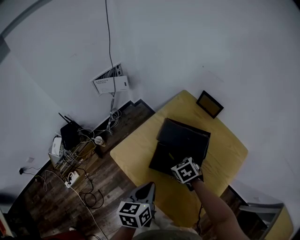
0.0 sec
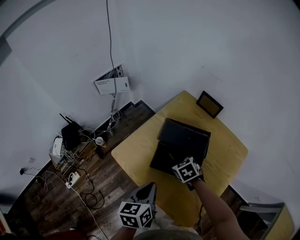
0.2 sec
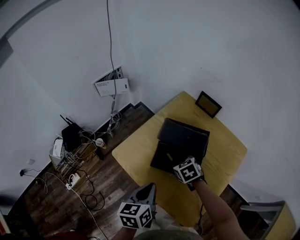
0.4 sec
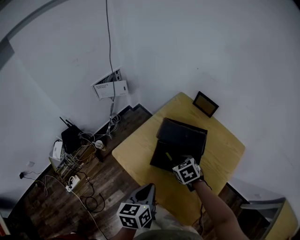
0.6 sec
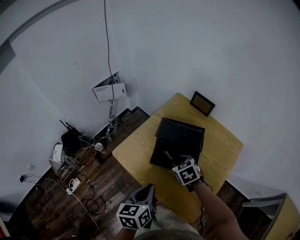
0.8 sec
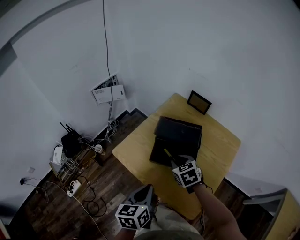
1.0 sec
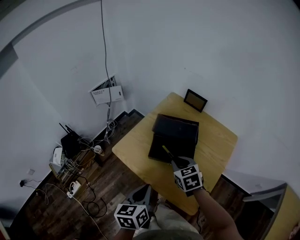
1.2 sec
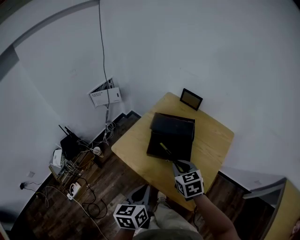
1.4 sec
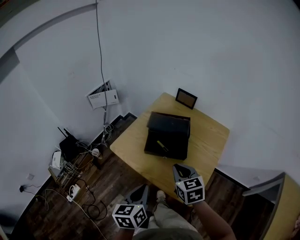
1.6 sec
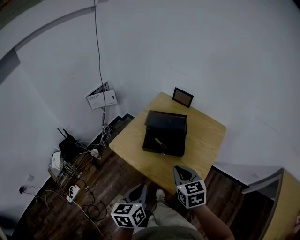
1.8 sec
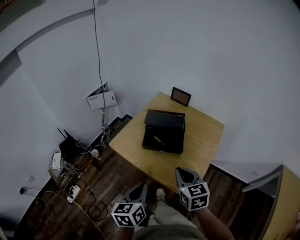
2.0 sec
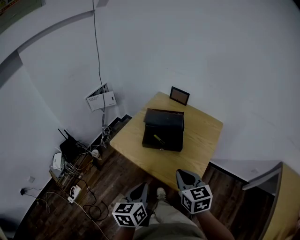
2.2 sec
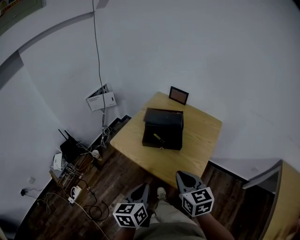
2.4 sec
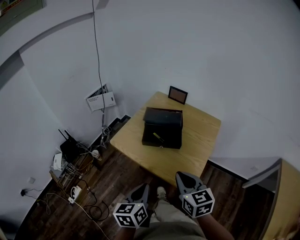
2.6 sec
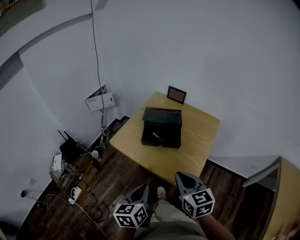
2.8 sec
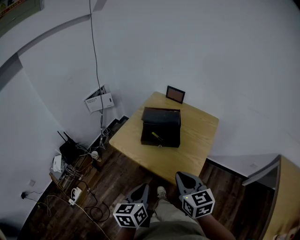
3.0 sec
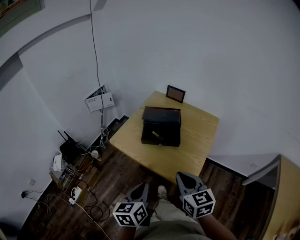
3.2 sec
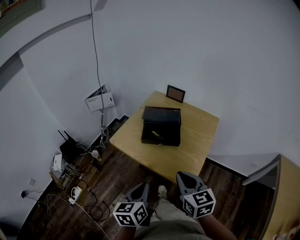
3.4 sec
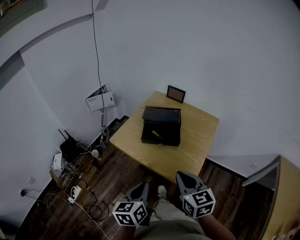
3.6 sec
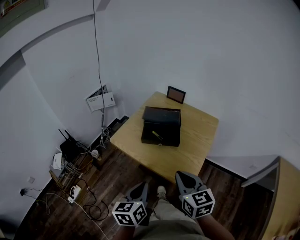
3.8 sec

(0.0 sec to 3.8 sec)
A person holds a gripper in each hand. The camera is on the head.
0.0 sec - 1.2 sec: The right gripper heads upward and backward, covering roughly 15 cm, and changes its angle by roughly 20 degrees. The left gripper travels backward by some 10 cm.
1.2 sec - 2.6 sec: The left gripper shifts roughly 10 cm backward. The right gripper moves backward and upward, roughly 25 cm, and rotates roughly 20 degrees.
2.6 sec - 3.8 sec: The grippers make only small movements.

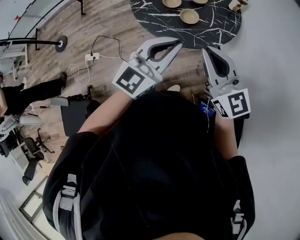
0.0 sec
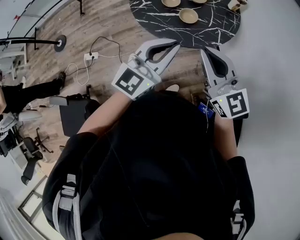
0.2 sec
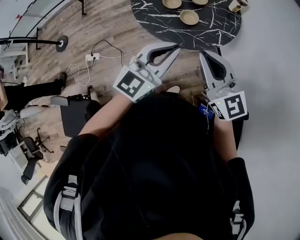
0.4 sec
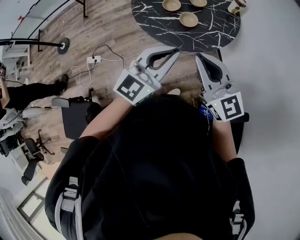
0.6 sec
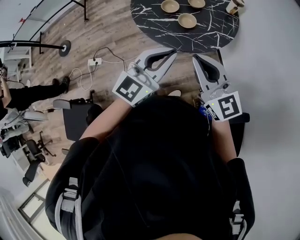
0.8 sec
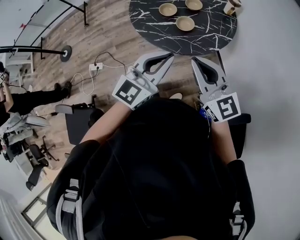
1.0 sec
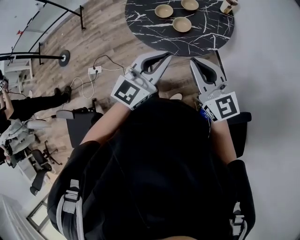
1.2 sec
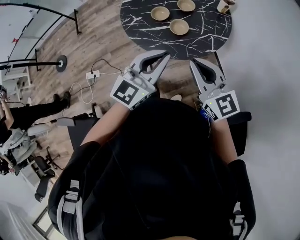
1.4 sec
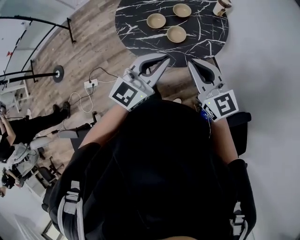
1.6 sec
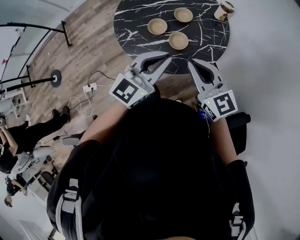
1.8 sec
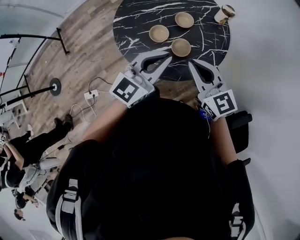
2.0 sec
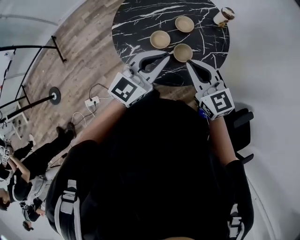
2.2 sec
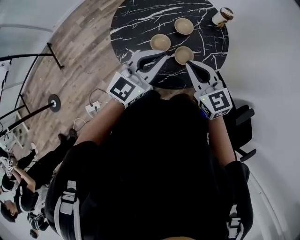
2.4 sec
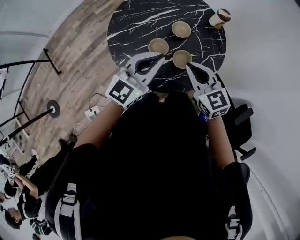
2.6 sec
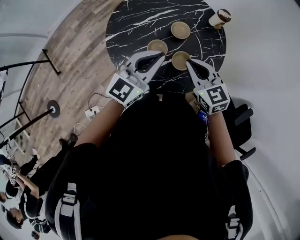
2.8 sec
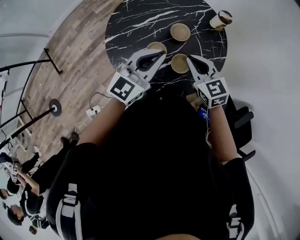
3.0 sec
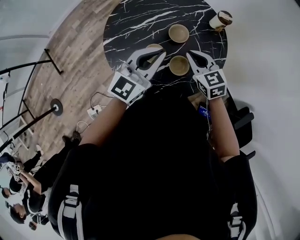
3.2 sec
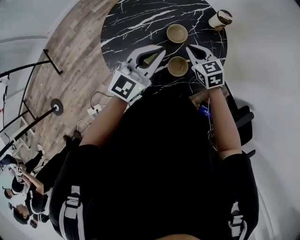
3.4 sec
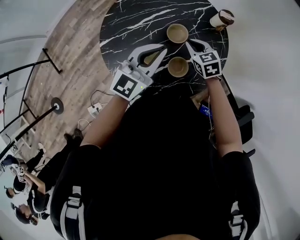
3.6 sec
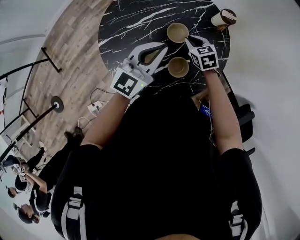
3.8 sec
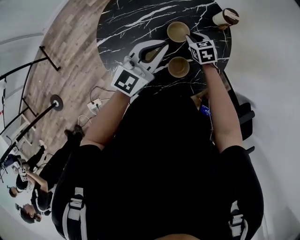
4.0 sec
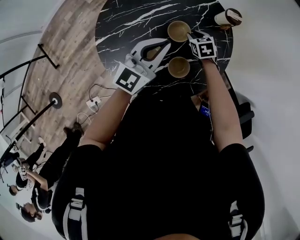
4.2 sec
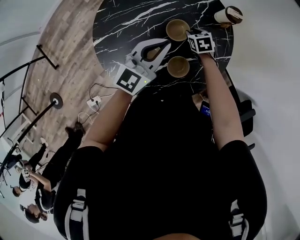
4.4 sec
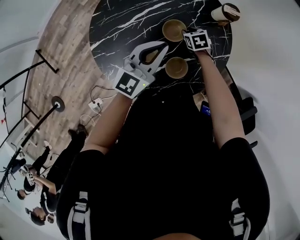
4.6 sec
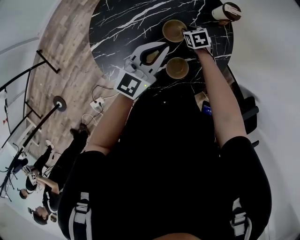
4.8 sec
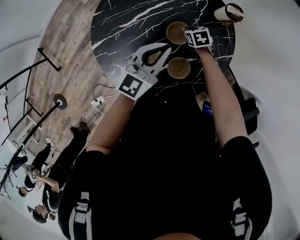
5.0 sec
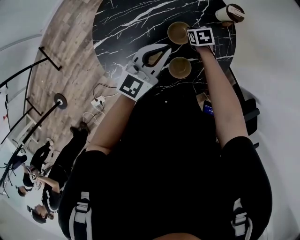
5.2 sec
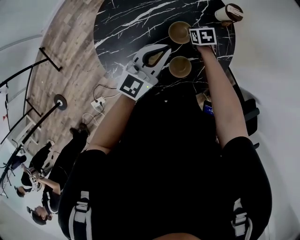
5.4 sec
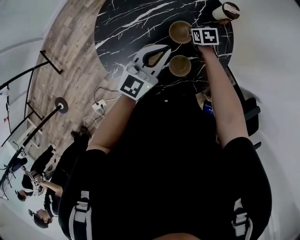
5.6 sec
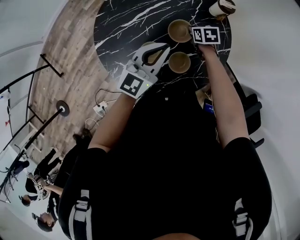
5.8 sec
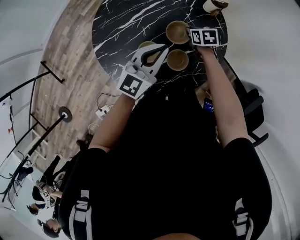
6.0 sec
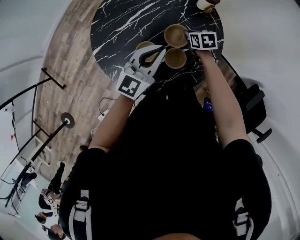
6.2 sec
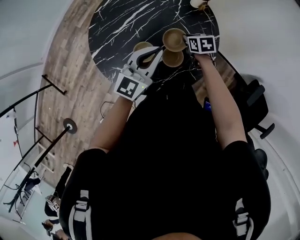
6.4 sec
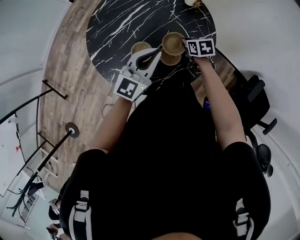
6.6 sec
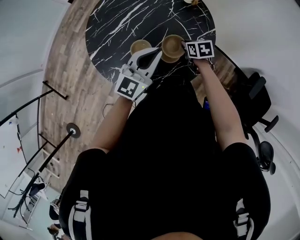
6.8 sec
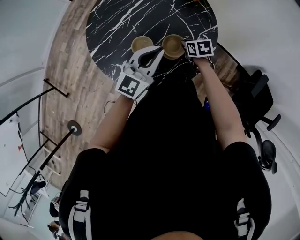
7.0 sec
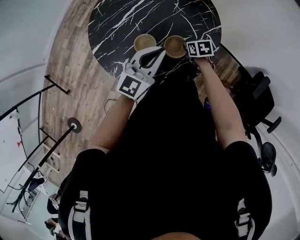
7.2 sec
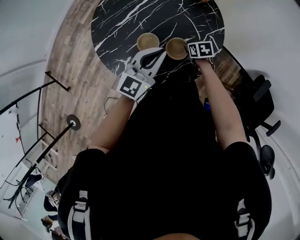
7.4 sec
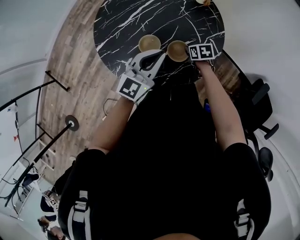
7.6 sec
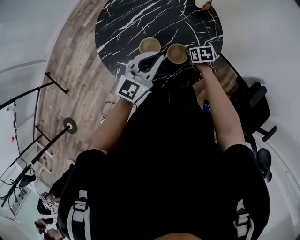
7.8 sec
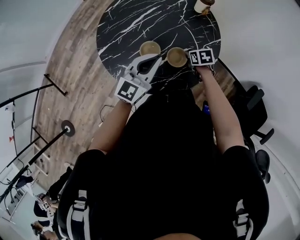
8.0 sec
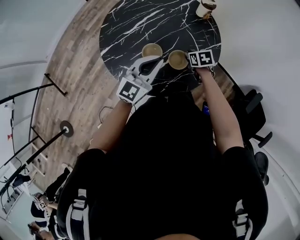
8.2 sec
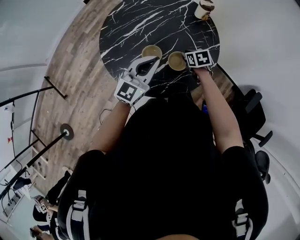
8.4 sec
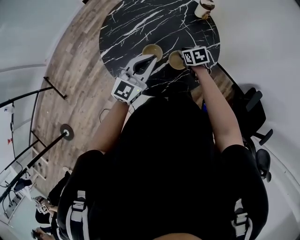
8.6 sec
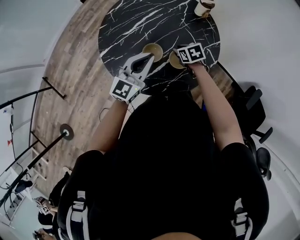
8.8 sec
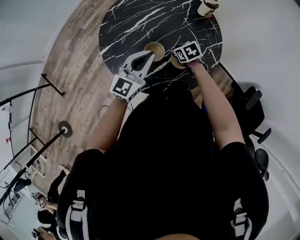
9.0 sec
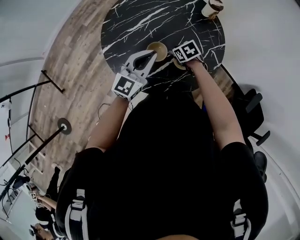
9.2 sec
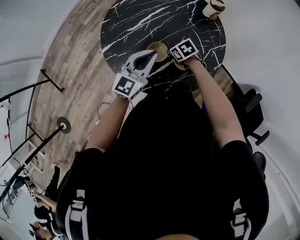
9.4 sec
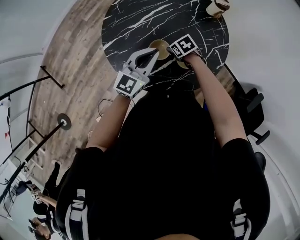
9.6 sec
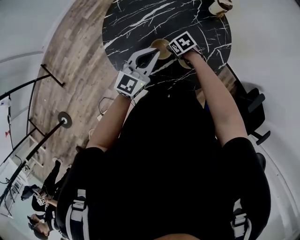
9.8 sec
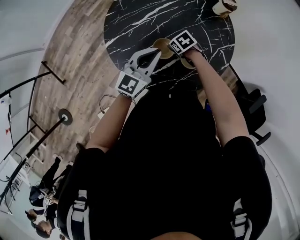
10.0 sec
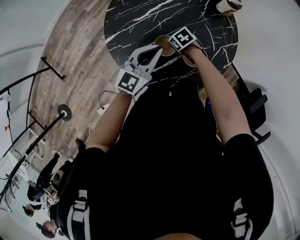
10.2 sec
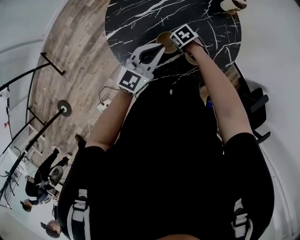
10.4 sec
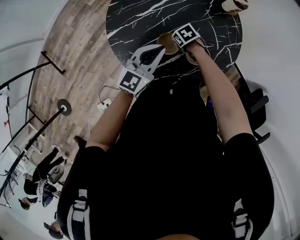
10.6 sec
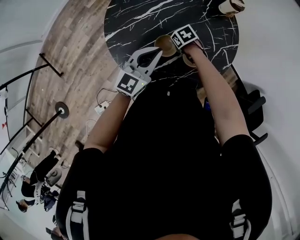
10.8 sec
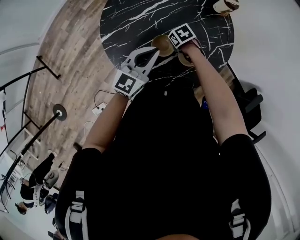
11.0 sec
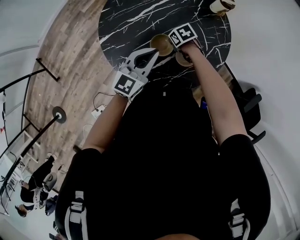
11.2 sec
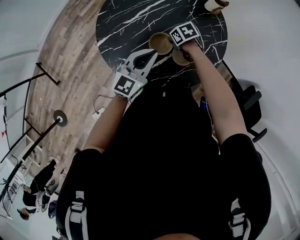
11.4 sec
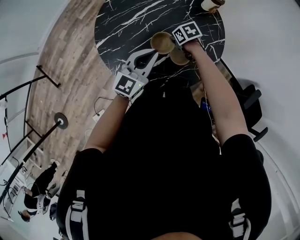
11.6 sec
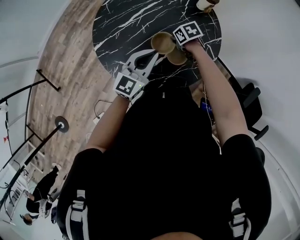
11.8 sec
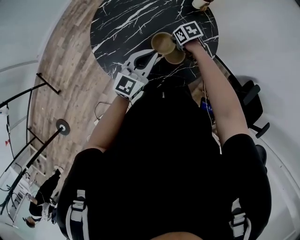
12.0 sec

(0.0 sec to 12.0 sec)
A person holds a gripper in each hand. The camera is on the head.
0.0 sec - 1.6 sec: Both grippers travel together forward, some 10 cm.
1.6 sec - 3.0 sec: The left gripper is displaced forward and to the left by some 30 cm. The right gripper is displaced forward, to the left and downward by some 30 cm, and swivels some 30 degrees.
3.0 sec - 4.4 sec: The left gripper heads forward and downward, covering roughly 15 cm. The right gripper goes about 35 cm downward and forward, points its fingers roughly 30 degrees further downward, and opens its fingers.
4.4 sec - 6.0 sec: The left gripper travels backward by some 5 cm. The right gripper moves approximately 5 cm, and closes.
6.0 sec - 7.6 sec: The left gripper travels backward by approximately 10 cm; the right gripper goes about 15 cm backward.
7.6 sec - 9.0 sec: The right gripper goes about 10 cm to the left and upward, and swivels some 20 degrees; the left gripper heads to the left, covering about 10 cm.
9.0 sec - 10.4 sec: The left gripper moves downward, about 5 cm. The right gripper moves downward, roughly 10 cm, and turns by roughly 20 degrees.
10.4 sec - 12.0 sec: The right gripper changes place by some 10 cm, rotates approximately 20 degrees, and closes up. The left gripper ends up roughly 10 cm from where it was.

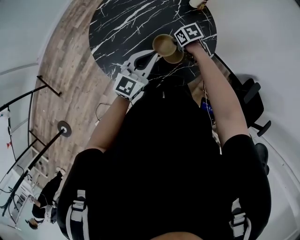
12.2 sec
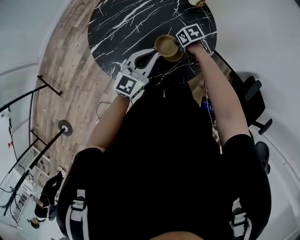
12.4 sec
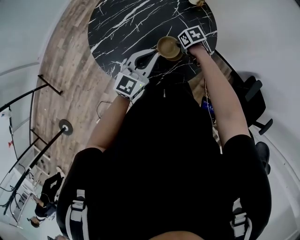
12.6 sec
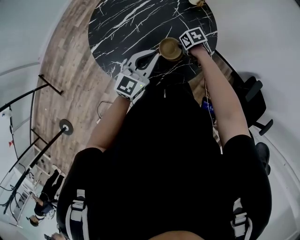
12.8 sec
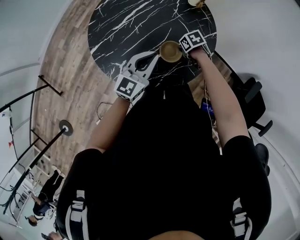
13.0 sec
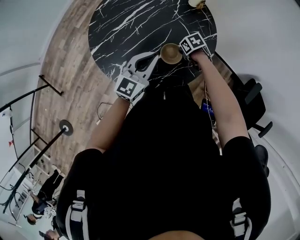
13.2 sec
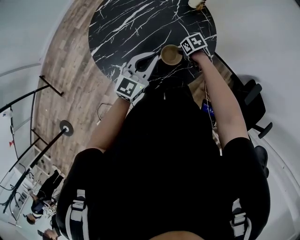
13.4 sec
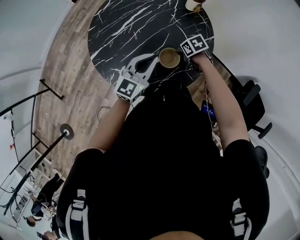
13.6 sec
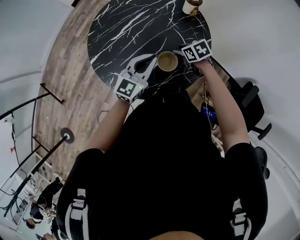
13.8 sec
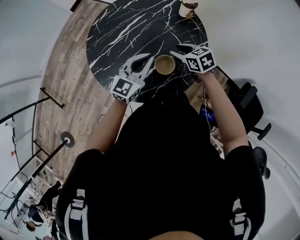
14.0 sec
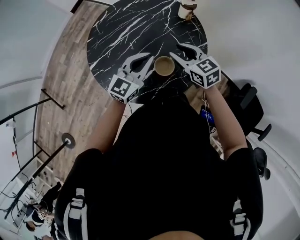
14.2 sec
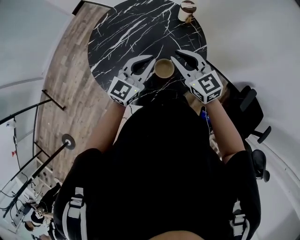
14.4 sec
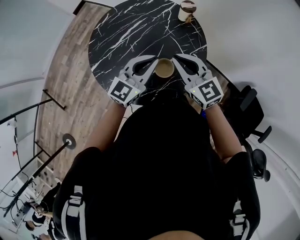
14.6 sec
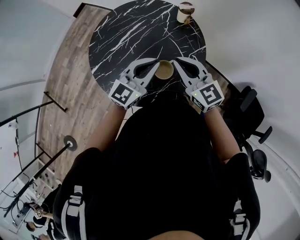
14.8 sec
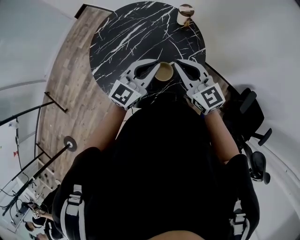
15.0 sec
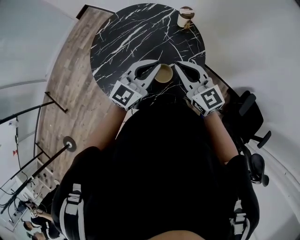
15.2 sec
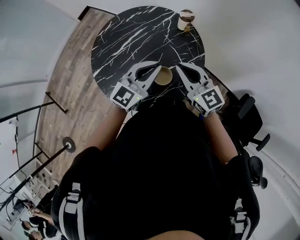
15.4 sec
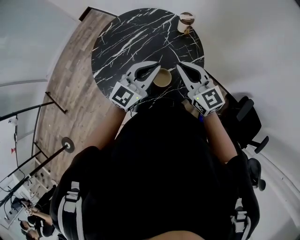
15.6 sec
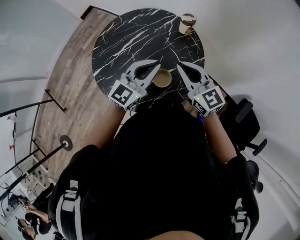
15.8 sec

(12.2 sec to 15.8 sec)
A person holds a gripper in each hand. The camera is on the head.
12.2 sec - 14.0 sec: The left gripper moves about 5 cm. The right gripper moves upward, roughly 10 cm, turns by approximately 30 degrees, and opens up.
14.0 sec - 15.8 sec: The left gripper heads upward, covering some 10 cm. The right gripper is displaced upward by approximately 20 cm, points its fingers roughly 30 degrees further upward, and closes its fingers.

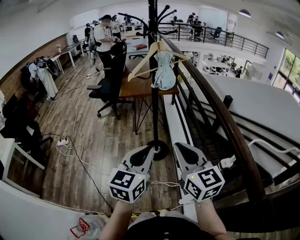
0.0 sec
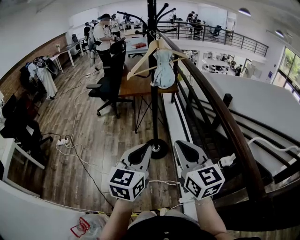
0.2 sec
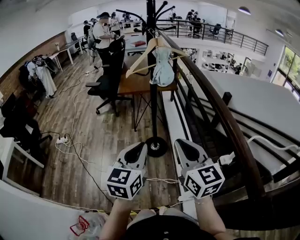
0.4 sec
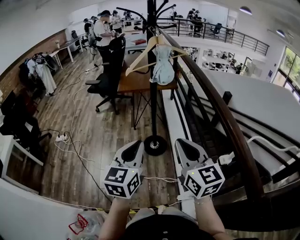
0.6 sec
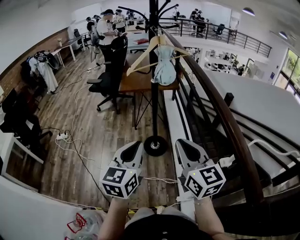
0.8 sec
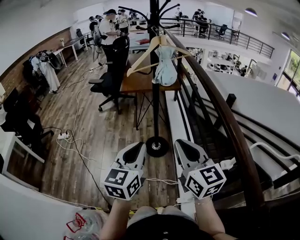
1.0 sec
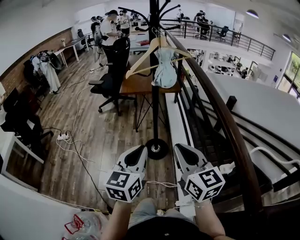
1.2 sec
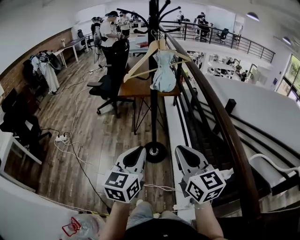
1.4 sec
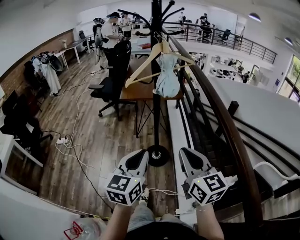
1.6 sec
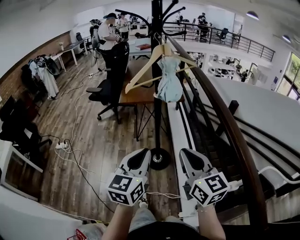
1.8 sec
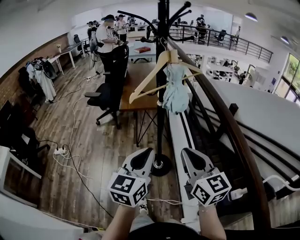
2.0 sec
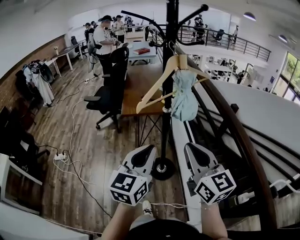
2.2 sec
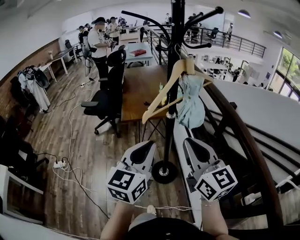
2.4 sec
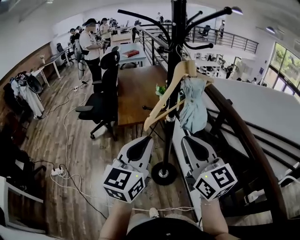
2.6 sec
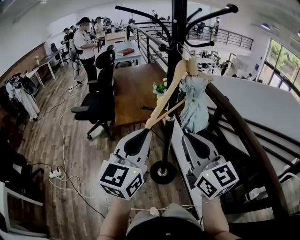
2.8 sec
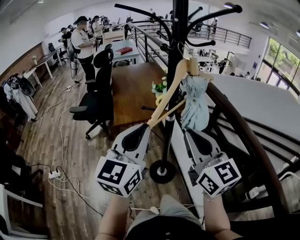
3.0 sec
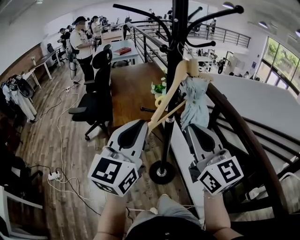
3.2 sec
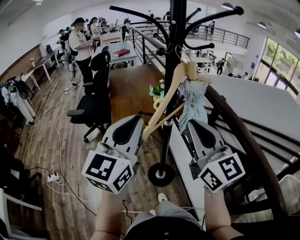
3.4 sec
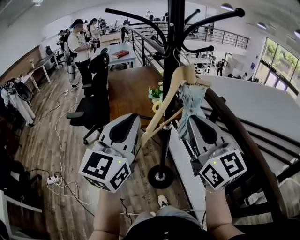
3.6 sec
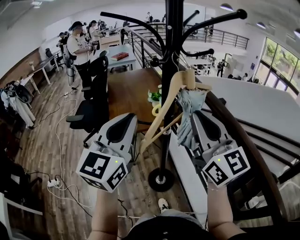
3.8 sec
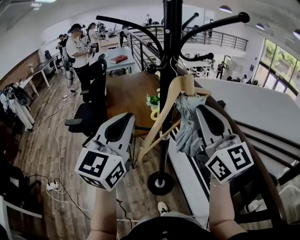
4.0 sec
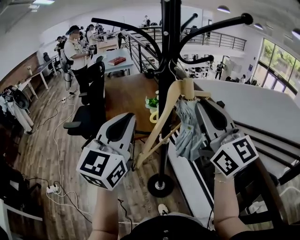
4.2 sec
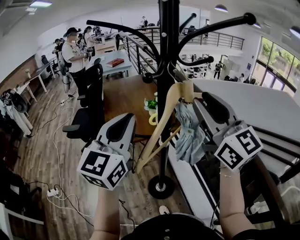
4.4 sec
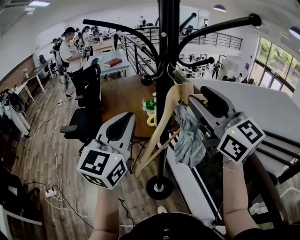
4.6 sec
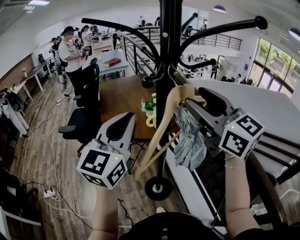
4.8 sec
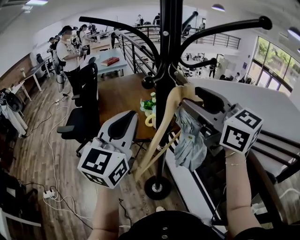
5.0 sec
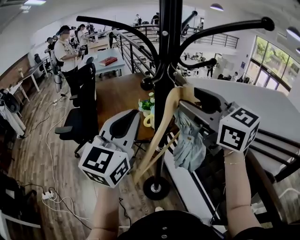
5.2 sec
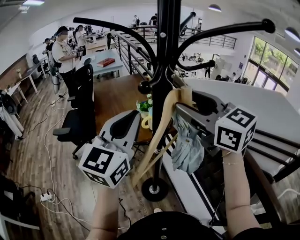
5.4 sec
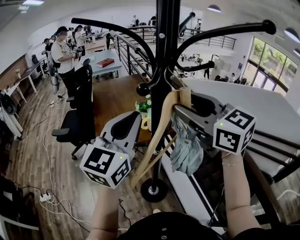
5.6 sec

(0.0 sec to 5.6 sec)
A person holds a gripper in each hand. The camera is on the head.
0.0 sec - 1.4 sec: The grippers both shift forward by roughly 5 cm.
1.4 sec - 2.8 sec: The right gripper is displaced forward and to the left by about 30 cm. The left gripper moves forward, to the left and upward, approximately 30 cm, and rotates approximately 20 degrees.
2.8 sec - 4.2 sec: The right gripper heads upward, forward and to the right, covering some 20 cm, while the left gripper heads forward and upward, covering roughly 15 cm.
4.2 sec - 5.6 sec: Both grippers move forward, about 5 cm. The right gripper swivels about 20 degrees, and opens its fingers.
